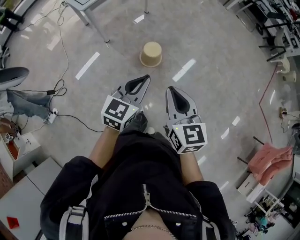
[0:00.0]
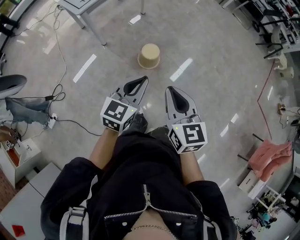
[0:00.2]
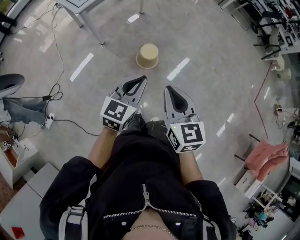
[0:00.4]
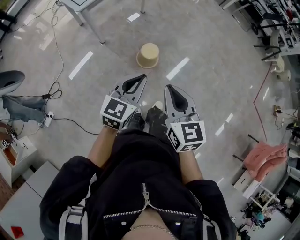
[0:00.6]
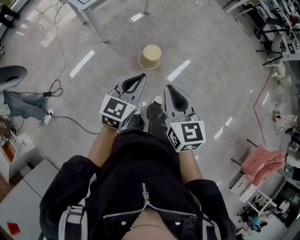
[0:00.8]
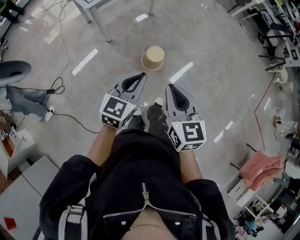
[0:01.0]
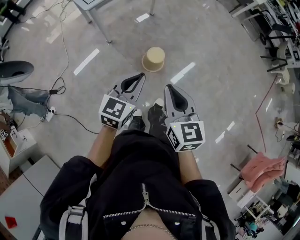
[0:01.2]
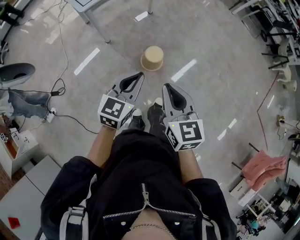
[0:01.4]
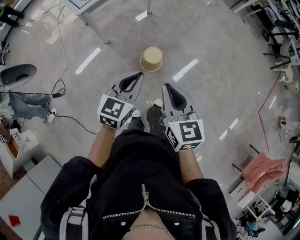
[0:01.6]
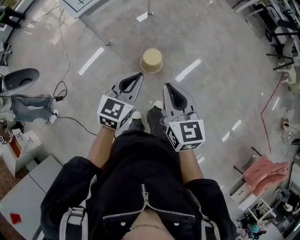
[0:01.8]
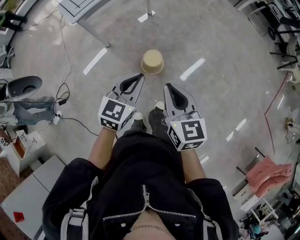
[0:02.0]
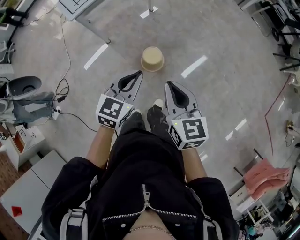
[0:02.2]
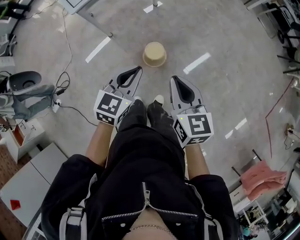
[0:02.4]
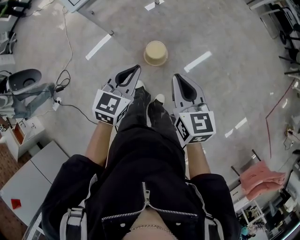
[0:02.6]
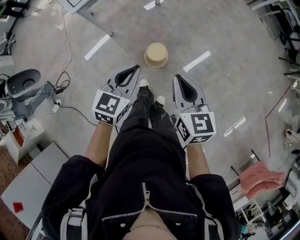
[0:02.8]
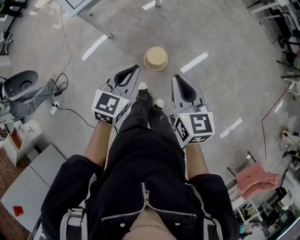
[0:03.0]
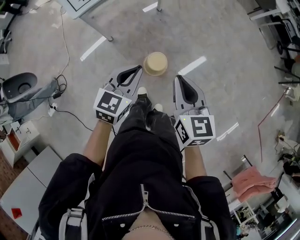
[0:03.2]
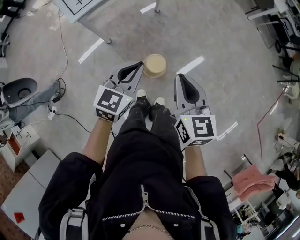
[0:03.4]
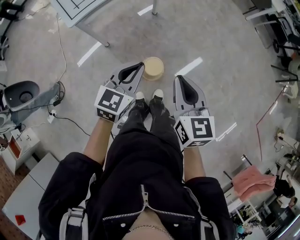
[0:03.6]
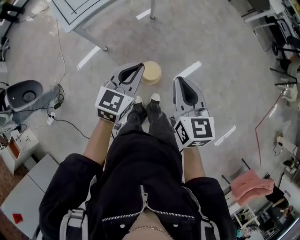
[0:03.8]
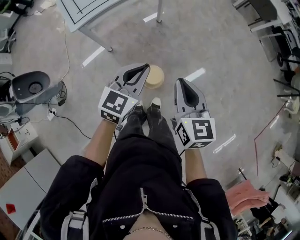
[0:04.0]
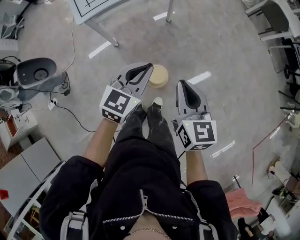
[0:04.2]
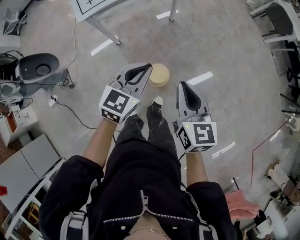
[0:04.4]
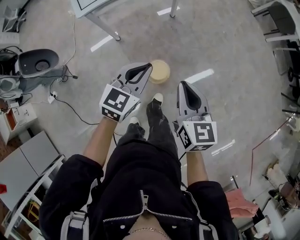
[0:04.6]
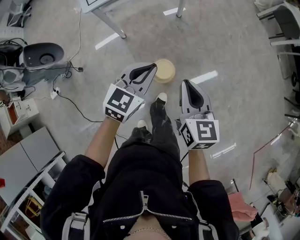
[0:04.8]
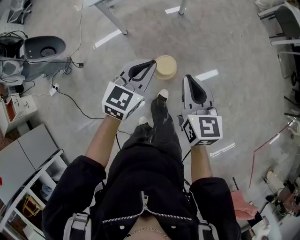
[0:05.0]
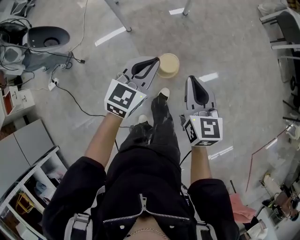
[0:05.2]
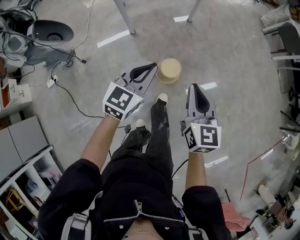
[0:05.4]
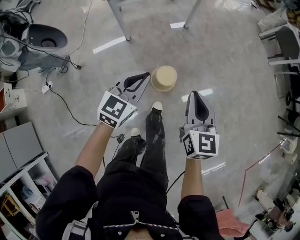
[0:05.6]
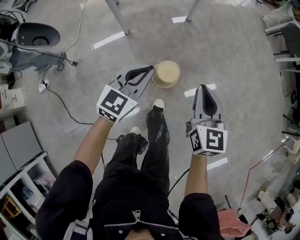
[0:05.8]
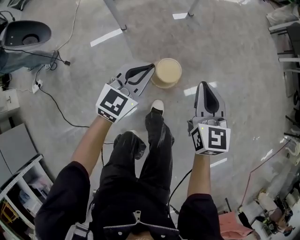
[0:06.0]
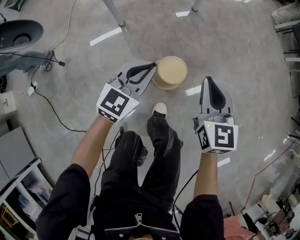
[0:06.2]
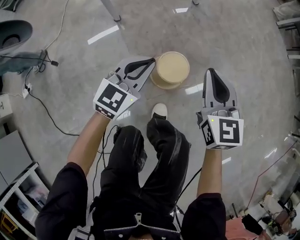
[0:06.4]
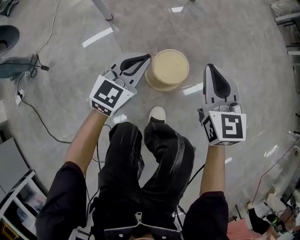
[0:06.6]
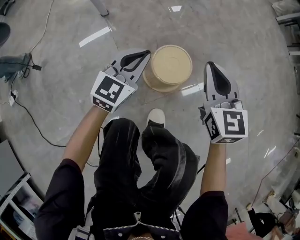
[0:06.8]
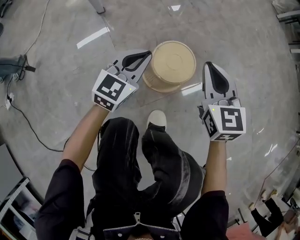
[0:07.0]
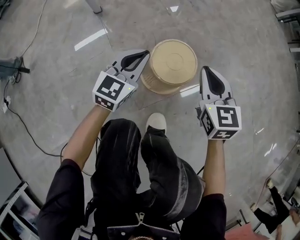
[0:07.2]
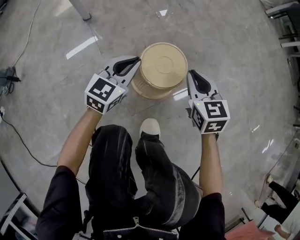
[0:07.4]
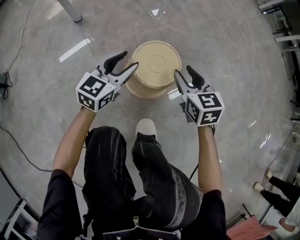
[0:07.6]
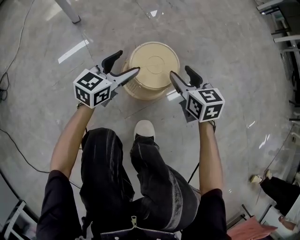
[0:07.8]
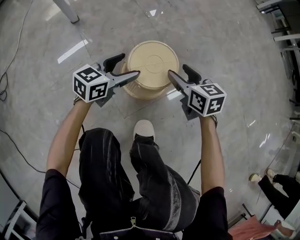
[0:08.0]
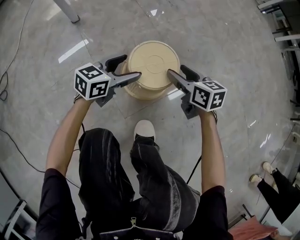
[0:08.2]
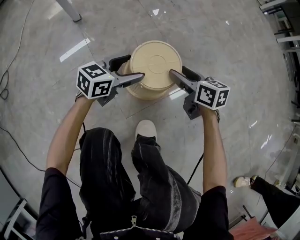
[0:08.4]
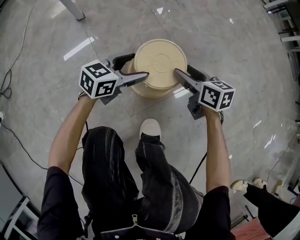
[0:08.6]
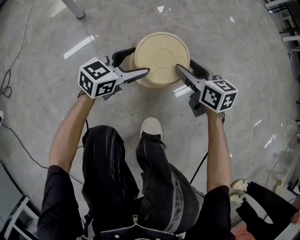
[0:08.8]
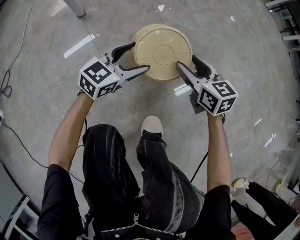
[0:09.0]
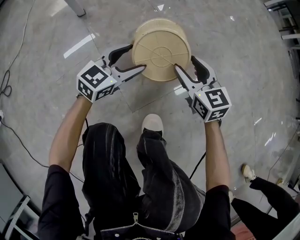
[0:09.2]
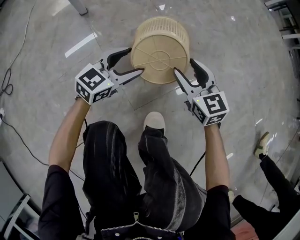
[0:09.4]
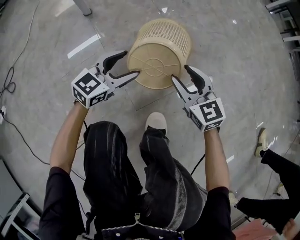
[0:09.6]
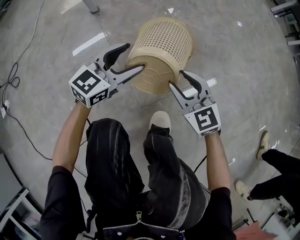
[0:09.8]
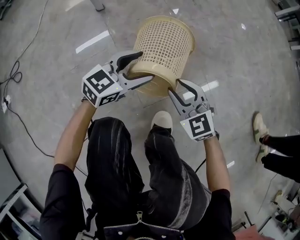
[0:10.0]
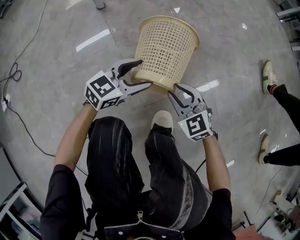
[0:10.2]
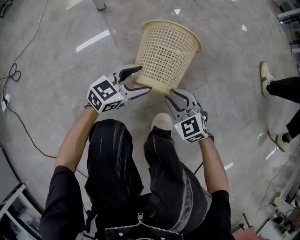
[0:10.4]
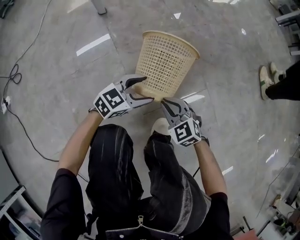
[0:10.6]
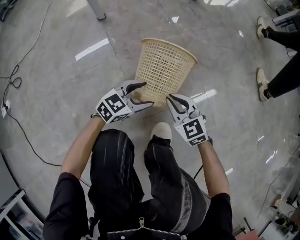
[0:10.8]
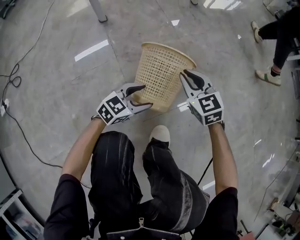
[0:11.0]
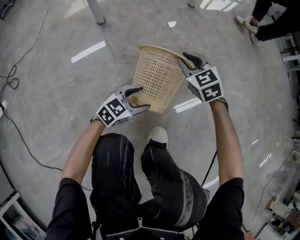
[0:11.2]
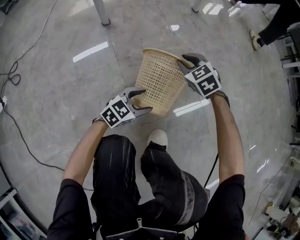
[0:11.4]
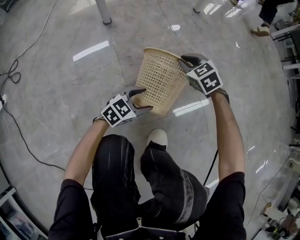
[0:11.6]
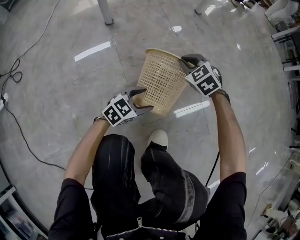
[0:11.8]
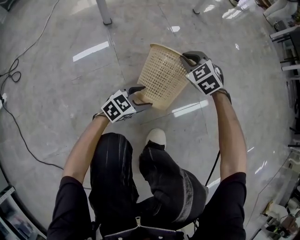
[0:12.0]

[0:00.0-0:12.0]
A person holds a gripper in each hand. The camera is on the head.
0:00.0 to 0:01.6: Both grippers travel together forward, some 15 cm.
0:01.6 to 0:03.0: Both grippers travel together forward, approximately 15 cm.
0:03.0 to 0:04.4: Both grippers move forward, some 15 cm.
0:04.4 to 0:06.0: The two grippers go roughly 25 cm downward.
0:06.0 to 0:07.6: Both grippers move downward, roughly 50 cm. The right gripper opens. Meanwhile the left gripper opens.
0:07.6 to 0:09.0: The right gripper opens its fingers. Meanwhile the left gripper opens.
0:09.0 to 0:10.4: The right gripper moves backward, downward and to the left, some 20 cm, turns by roughly 40 degrees, and closes. The left gripper moves backward, approximately 10 cm.
0:10.4 to 0:12.0: The right gripper moves forward, approximately 20 cm, and closes.

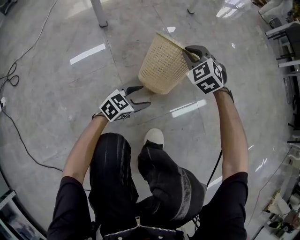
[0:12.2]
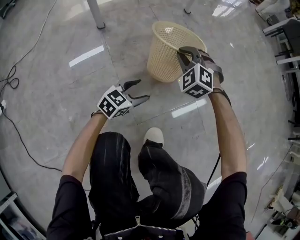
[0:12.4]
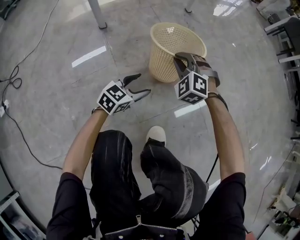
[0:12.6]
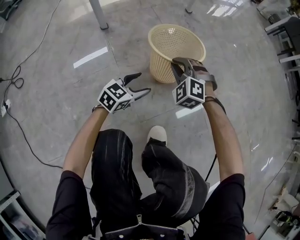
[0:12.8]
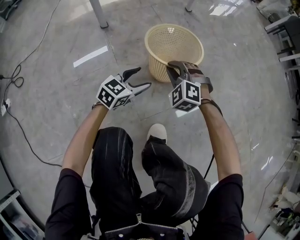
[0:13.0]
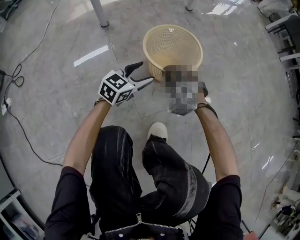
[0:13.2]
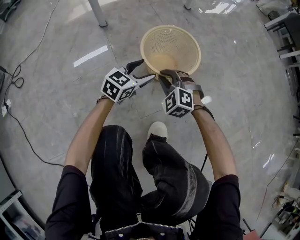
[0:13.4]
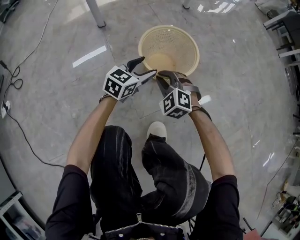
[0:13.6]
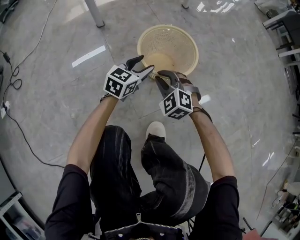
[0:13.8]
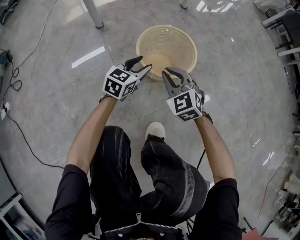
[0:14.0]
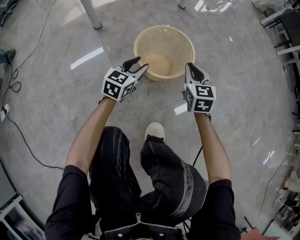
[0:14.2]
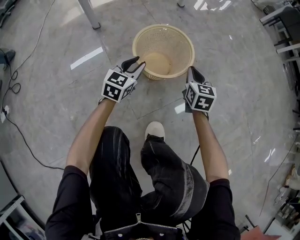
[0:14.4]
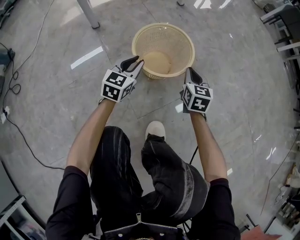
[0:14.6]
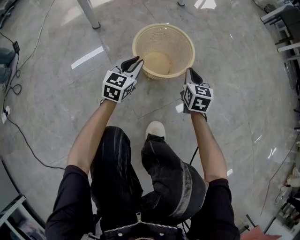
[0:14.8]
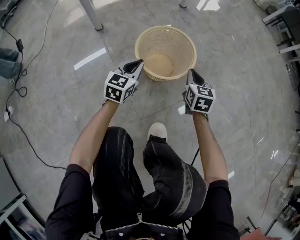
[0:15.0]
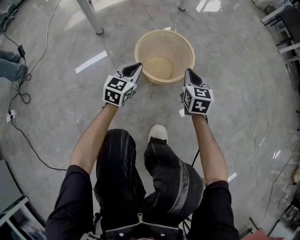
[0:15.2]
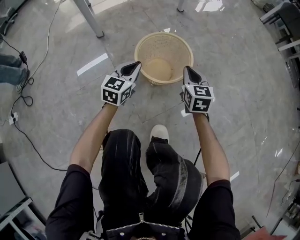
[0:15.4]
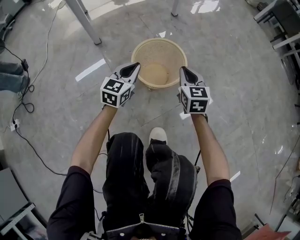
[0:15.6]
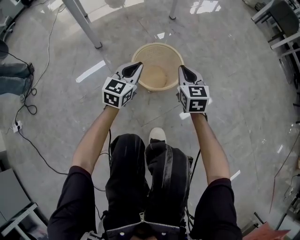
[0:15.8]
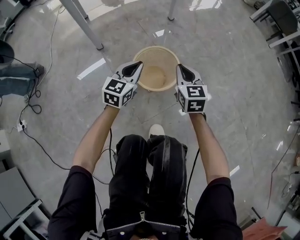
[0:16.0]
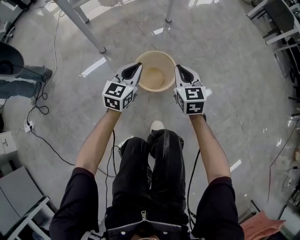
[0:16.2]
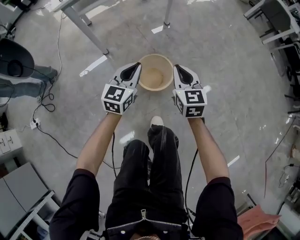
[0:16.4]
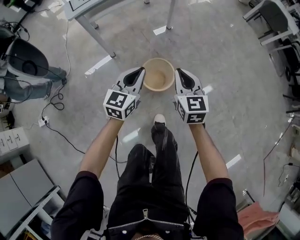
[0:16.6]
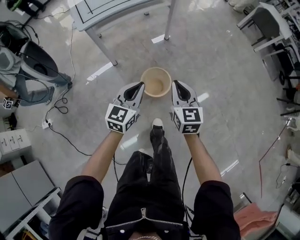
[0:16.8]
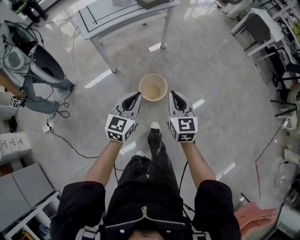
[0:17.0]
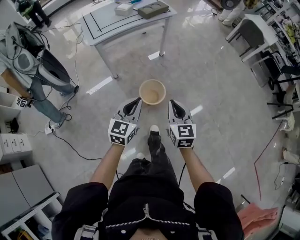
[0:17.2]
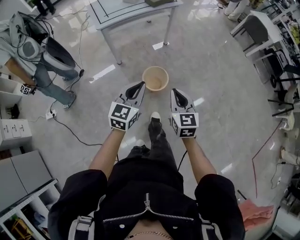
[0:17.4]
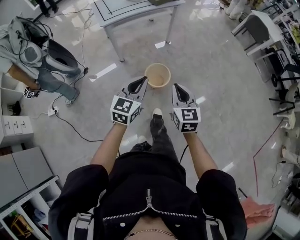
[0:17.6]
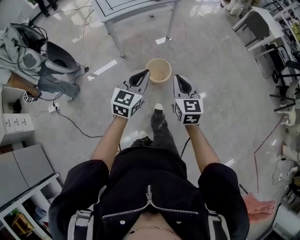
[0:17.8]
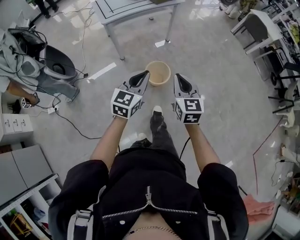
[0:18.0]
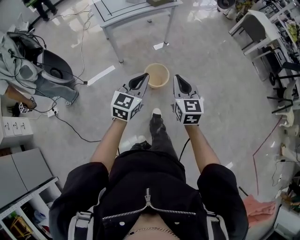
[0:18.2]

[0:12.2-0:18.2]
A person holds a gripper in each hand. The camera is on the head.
0:12.2 to 0:13.8: The right gripper is displaced backward and downward by roughly 15 cm; the left gripper goes about 10 cm forward and upward, and changes its angle by roughly 20 degrees.
0:13.8 to 0:15.2: The right gripper travels to the right and forward by some 15 cm, and rolls clockwise, seen from behind, by roughly 60 degrees. The left gripper closes.
0:15.2 to 0:16.6: The two grippers go some 50 cm upward.
0:16.6 to 0:18.2: The grippers both shift upward and backward by some 35 cm.

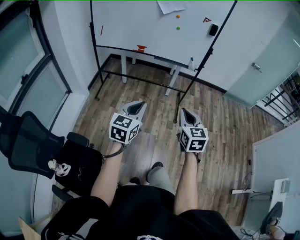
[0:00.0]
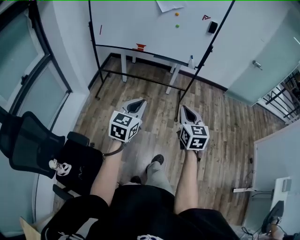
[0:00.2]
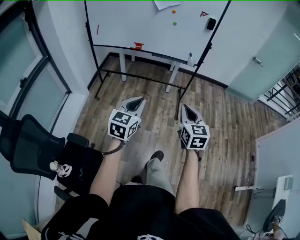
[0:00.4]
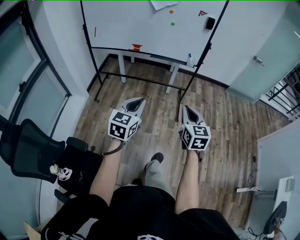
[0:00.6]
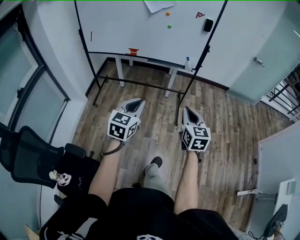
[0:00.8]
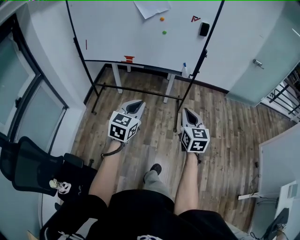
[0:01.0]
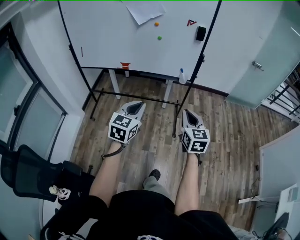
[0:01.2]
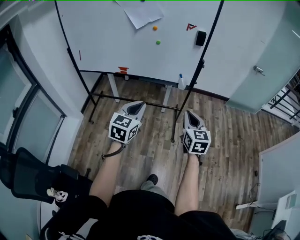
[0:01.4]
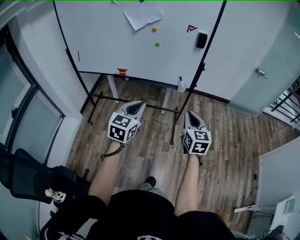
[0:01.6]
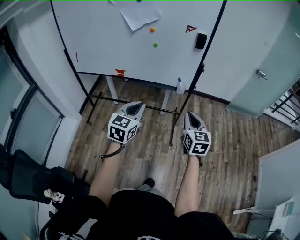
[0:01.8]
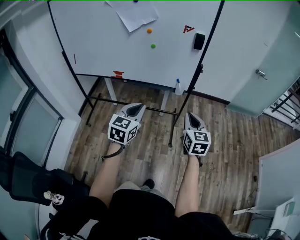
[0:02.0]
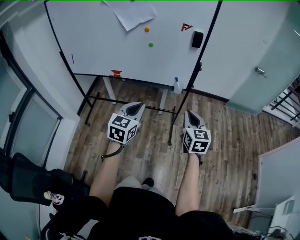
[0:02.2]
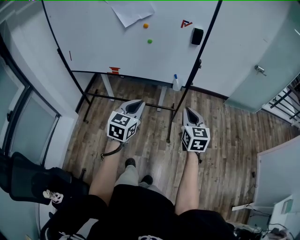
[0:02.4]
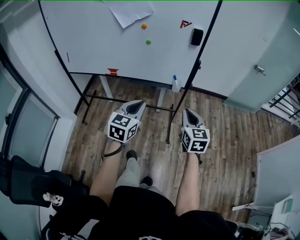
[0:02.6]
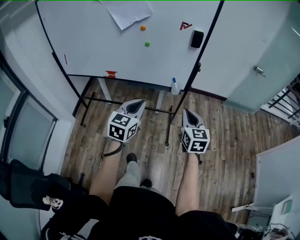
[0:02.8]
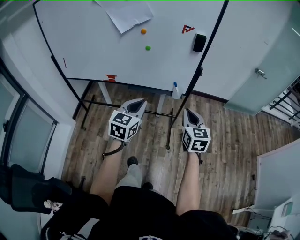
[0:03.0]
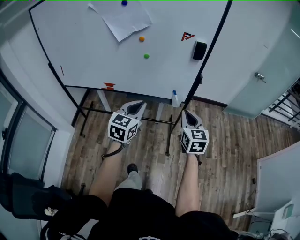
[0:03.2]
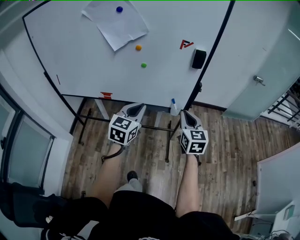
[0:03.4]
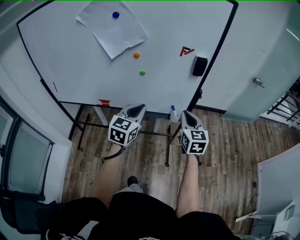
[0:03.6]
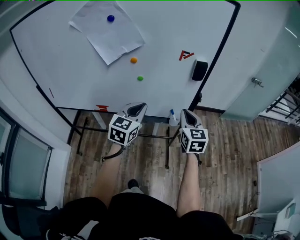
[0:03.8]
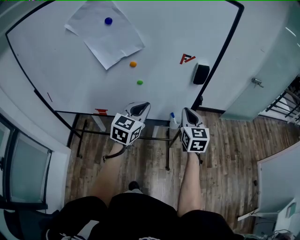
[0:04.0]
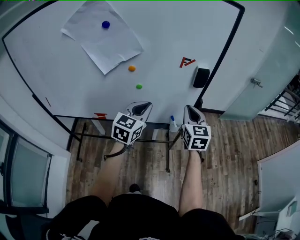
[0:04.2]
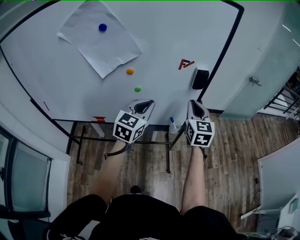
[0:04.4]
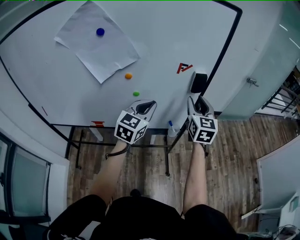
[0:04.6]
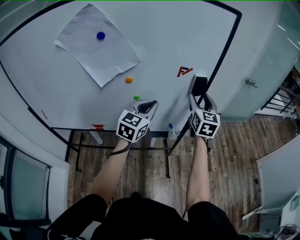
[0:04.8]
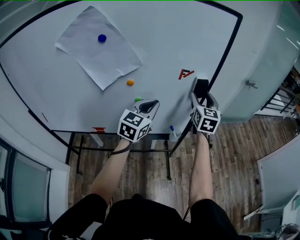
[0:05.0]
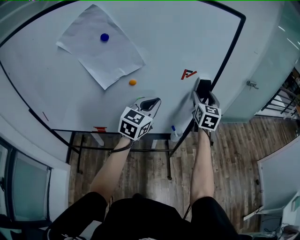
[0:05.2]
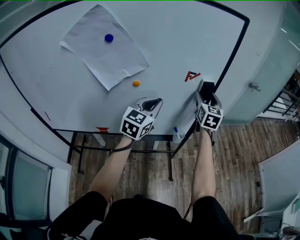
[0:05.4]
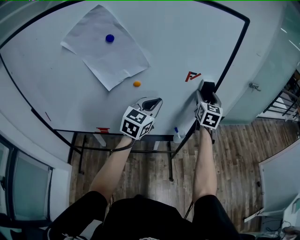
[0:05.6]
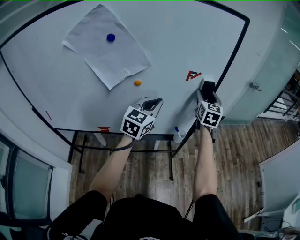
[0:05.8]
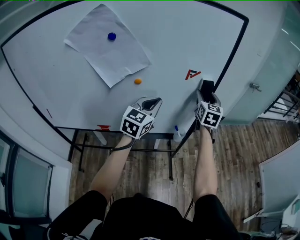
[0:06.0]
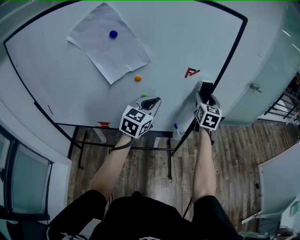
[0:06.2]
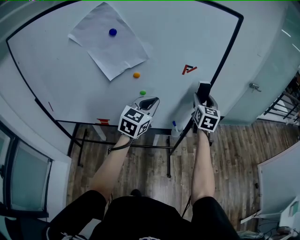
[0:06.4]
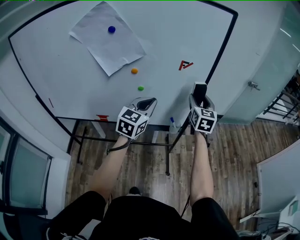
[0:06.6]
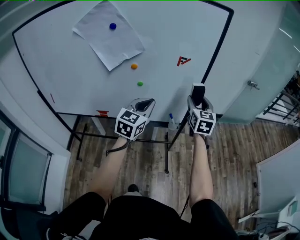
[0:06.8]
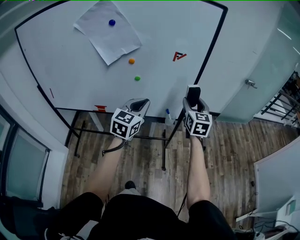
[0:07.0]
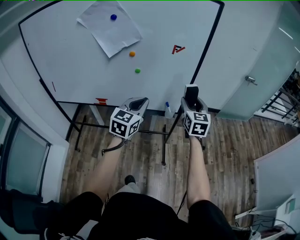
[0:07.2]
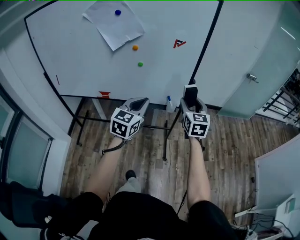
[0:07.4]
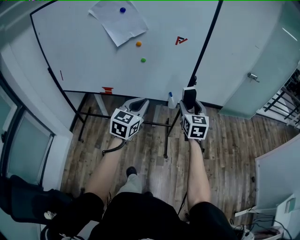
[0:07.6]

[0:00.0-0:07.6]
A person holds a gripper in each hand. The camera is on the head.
0:00.0 to 0:01.6: The right gripper is displaced forward and to the right by approximately 35 cm. Meanwhile the left gripper goes approximately 30 cm forward.
0:01.6 to 0:03.0: Both grippers travel together forward, approximately 15 cm.
0:03.0 to 0:04.6: The right gripper shifts approximately 30 cm forward and upward, and opens its fingers. The left gripper moves forward, some 25 cm.
0:04.6 to 0:06.0: The right gripper goes about 10 cm forward, and opens its fingers.
0:06.0 to 0:07.6: The grippers both shift backward by about 25 cm.
